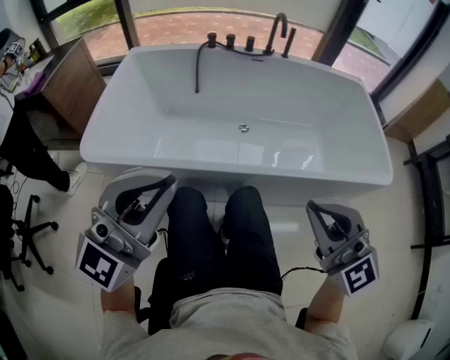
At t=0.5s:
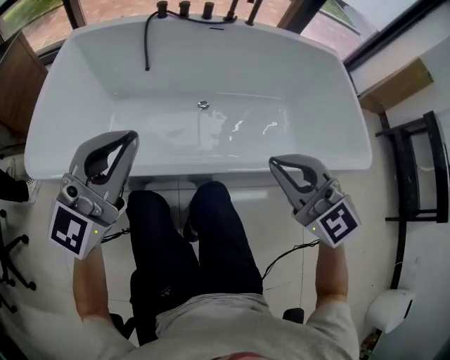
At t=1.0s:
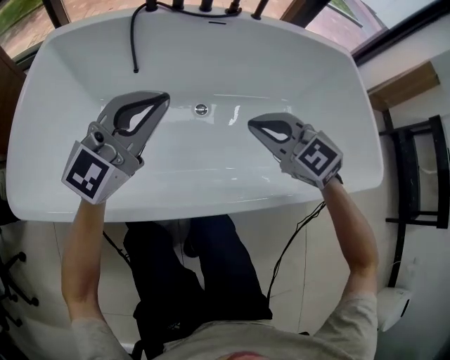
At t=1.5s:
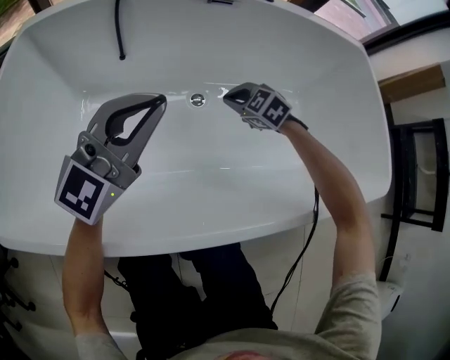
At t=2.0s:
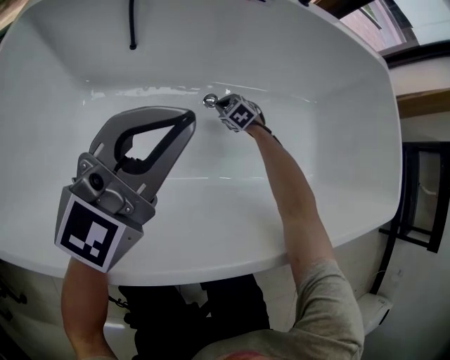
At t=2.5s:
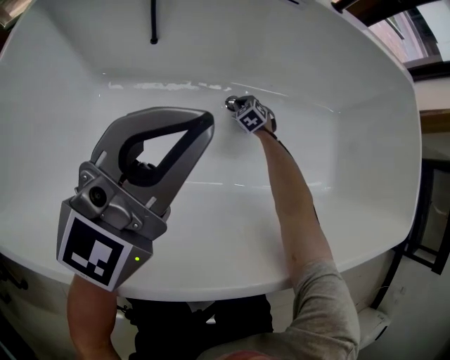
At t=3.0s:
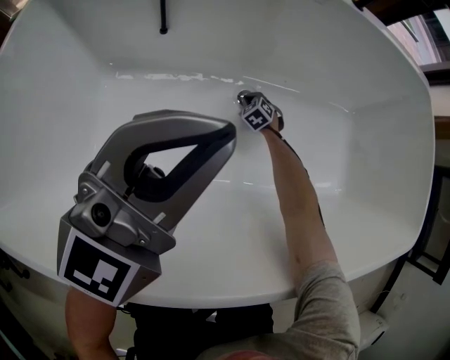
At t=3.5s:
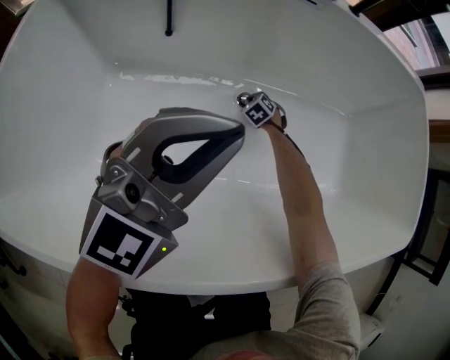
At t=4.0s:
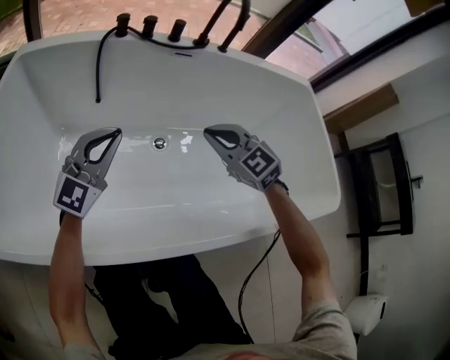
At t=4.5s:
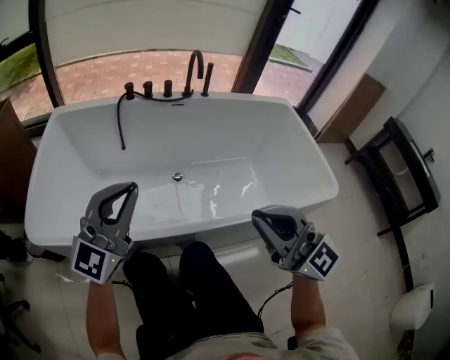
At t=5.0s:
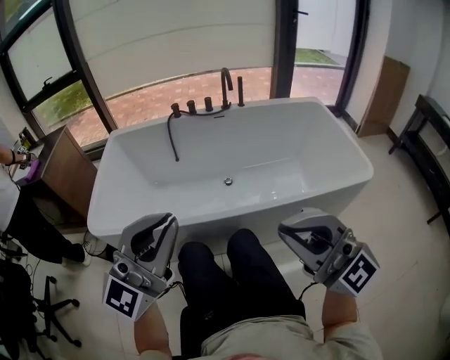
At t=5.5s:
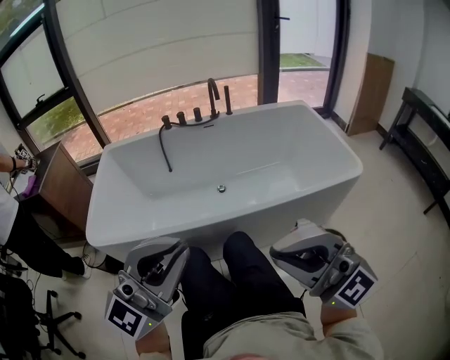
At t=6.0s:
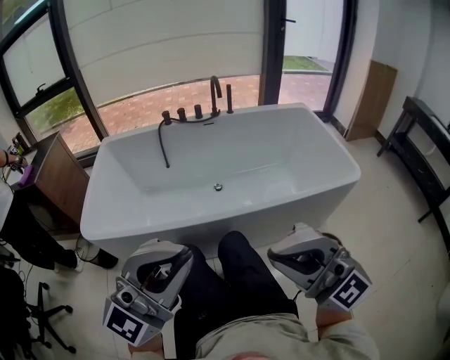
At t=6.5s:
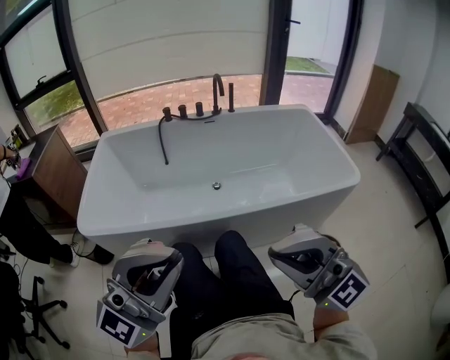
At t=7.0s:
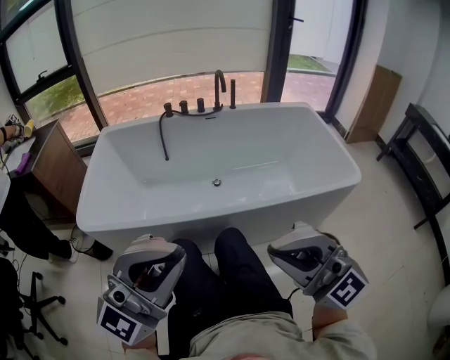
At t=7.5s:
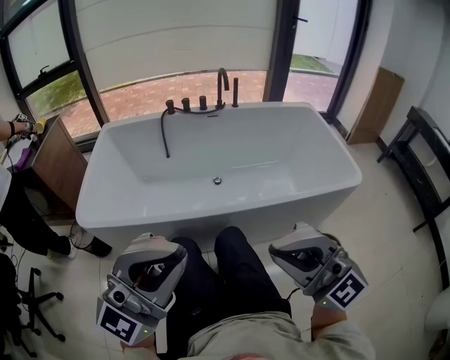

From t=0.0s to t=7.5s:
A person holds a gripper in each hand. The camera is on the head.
From t=0.0s to t=2.0s: The right gripper travels downward and forward by approximately 90 cm, and angles its fingers downward, by some 60 degrees. The left gripper heads forward and downward, covering about 50 cm.
From t=2.0s to t=4.0s: The right gripper is displaced upward by approximately 40 cm, and tips its fingers upward by approximately 40 degrees.
From t=4.0s to t=5.5s: Both grippers are carried backward, some 50 cm. The grippers both shift upward by about 30 cm. The right gripper angles its fingers upward, by roughly 40 degrees, while the left gripper rotates roughly 30 degrees.
From t=5.5s to t=7.5s: There are only small adjustments of the grippers.

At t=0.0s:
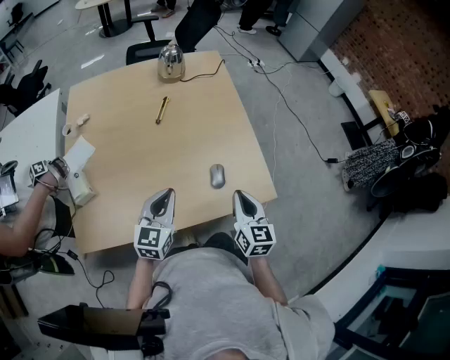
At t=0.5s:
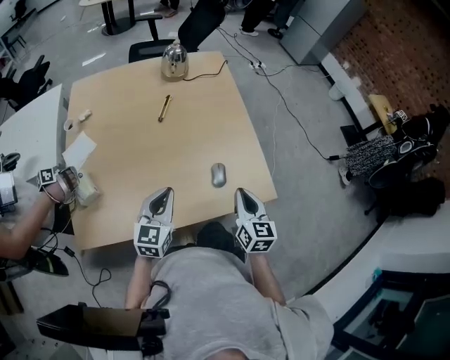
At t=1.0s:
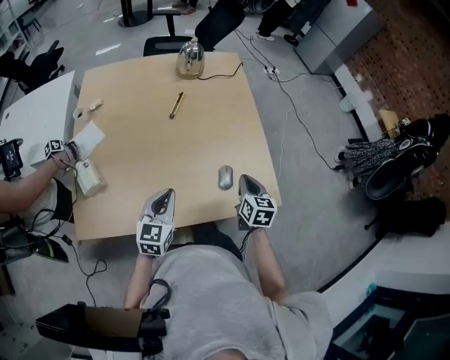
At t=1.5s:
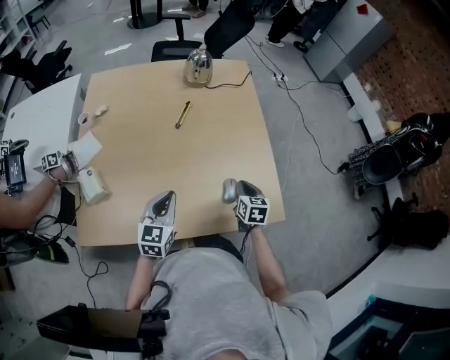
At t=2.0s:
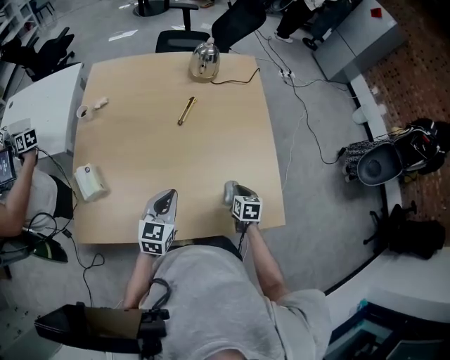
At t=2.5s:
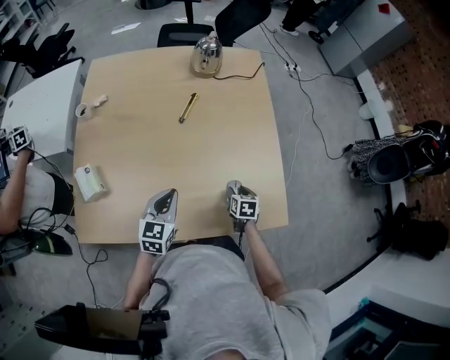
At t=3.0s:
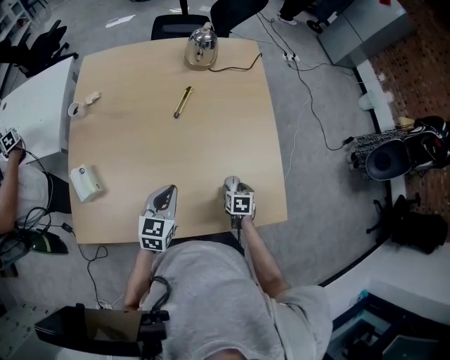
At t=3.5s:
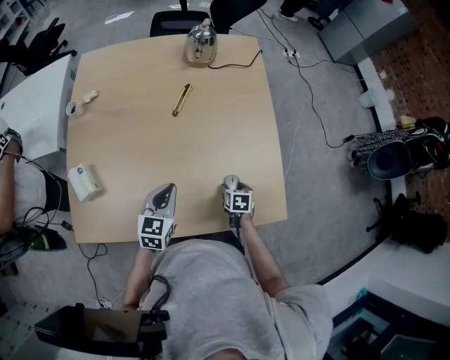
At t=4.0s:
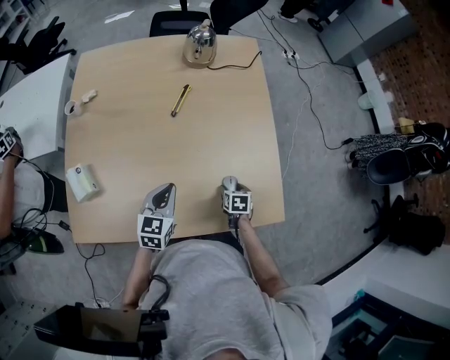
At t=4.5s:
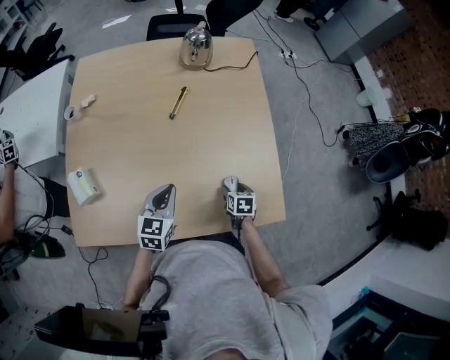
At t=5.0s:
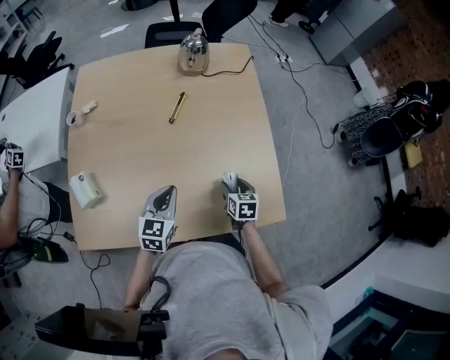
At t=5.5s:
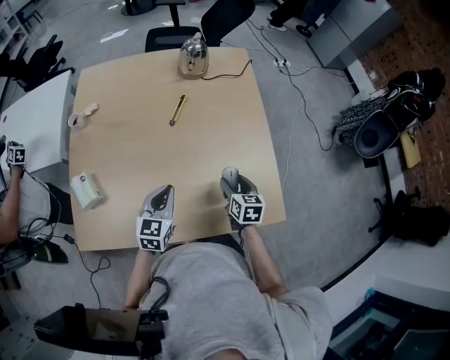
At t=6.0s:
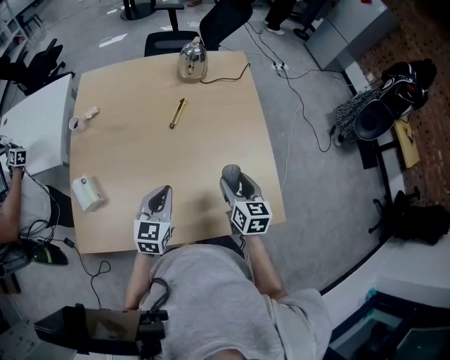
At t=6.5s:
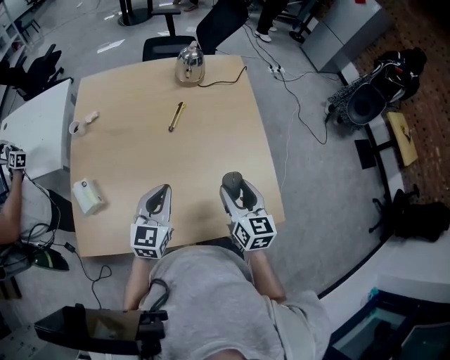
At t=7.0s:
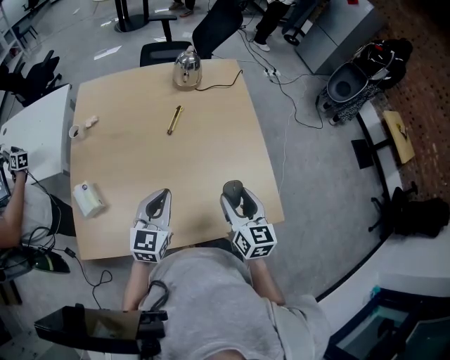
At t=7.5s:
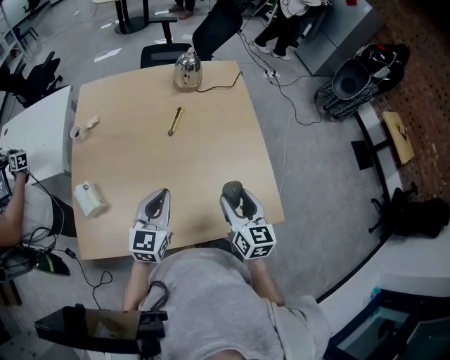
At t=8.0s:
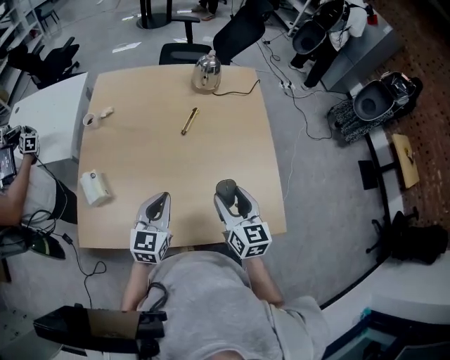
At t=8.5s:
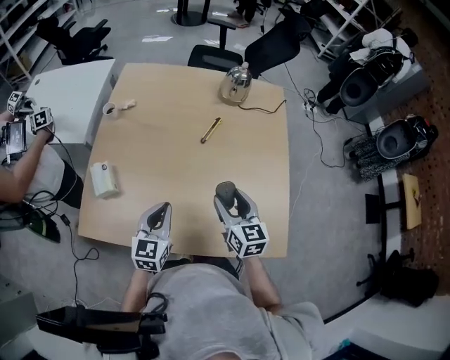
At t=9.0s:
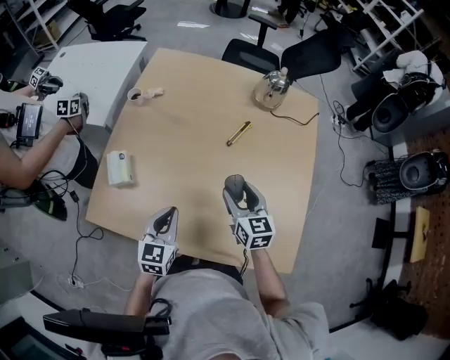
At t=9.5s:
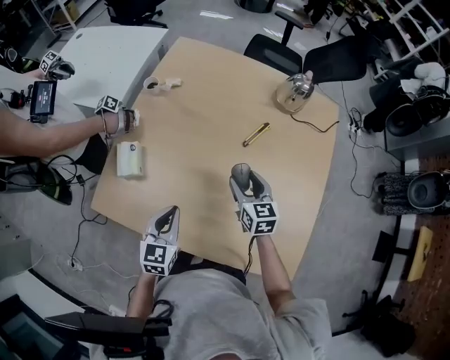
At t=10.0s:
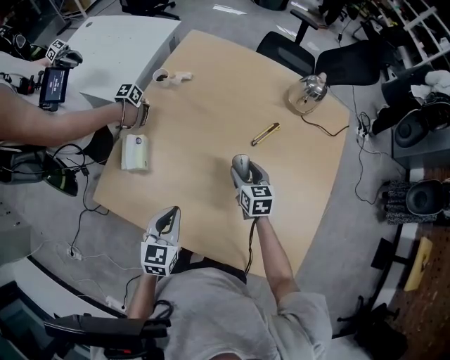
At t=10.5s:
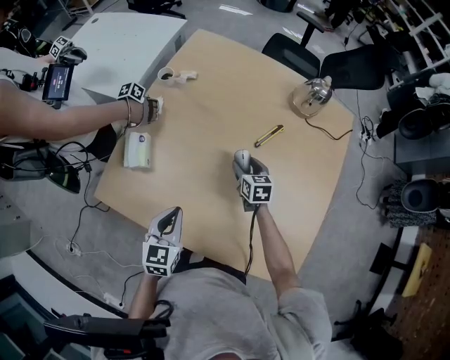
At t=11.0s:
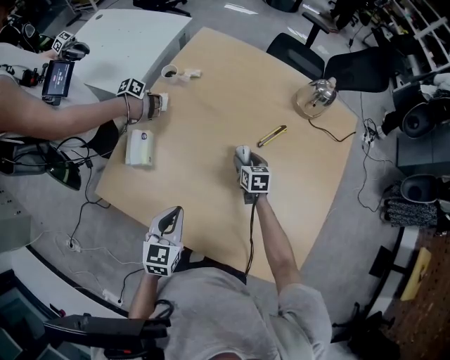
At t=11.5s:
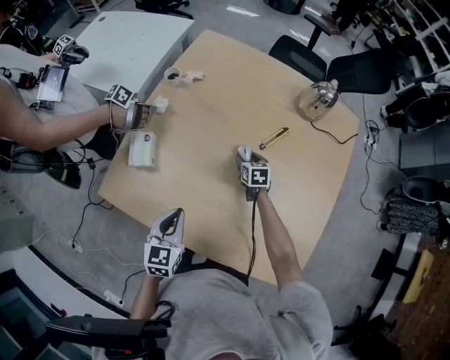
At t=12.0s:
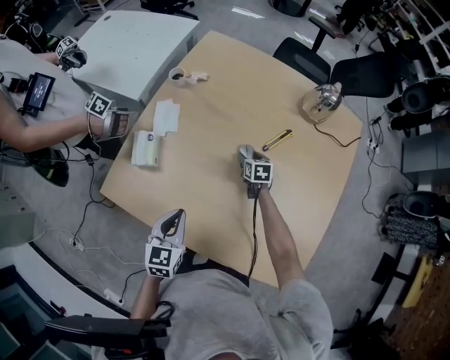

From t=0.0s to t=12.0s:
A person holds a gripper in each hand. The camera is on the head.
From t=0.0s to t=2.0s: The right gripper heads downward and forward, covering about 25 cm, and points its fingers roughly 30 degrees further downward, while the left gripper moves downward and forward, some 10 cm.
From t=2.0s to t=4.0s: The right gripper moves downward, approximately 5 cm, and opens.
From t=4.0s to t=6.0s: The left gripper is displaced upward by about 5 cm, while the right gripper is displaced upward by roughly 25 cm, and tips its fingers upward by about 40 degrees.
From t=6.0s to t=8.0s: The right gripper heads upward and to the left, covering approximately 10 cm. Meanwhile the left gripper changes place by roughly 5 cm.
From t=8.0s to t=10.0s: The right gripper ends up about 30 cm from where it was, and turns by roughly 30 degrees. The left gripper ends up about 15 cm from where it was, and swivels approximately 30 degrees.
From t=10.0s to t=12.0s: The right gripper moves downward and forward, about 15 cm.

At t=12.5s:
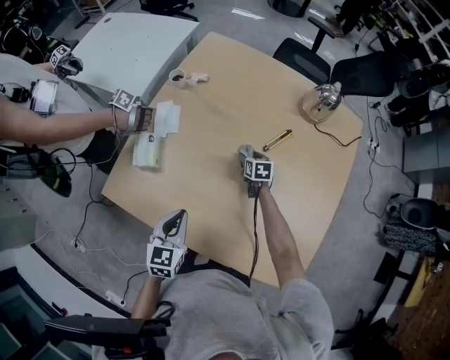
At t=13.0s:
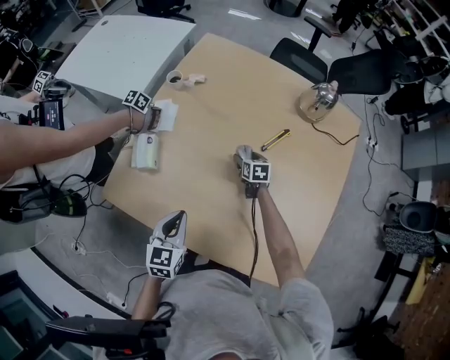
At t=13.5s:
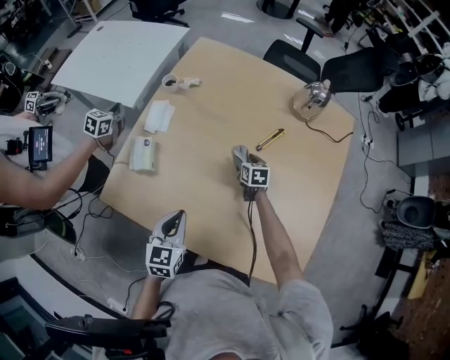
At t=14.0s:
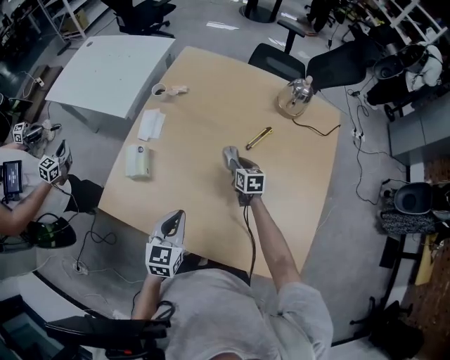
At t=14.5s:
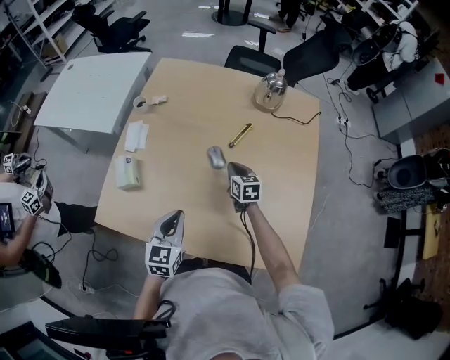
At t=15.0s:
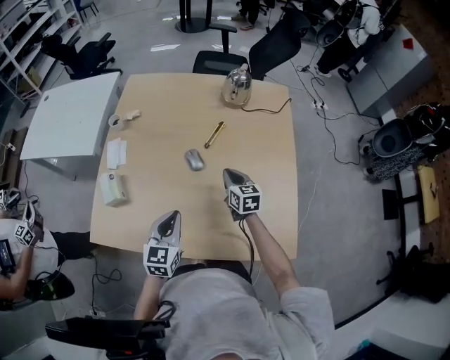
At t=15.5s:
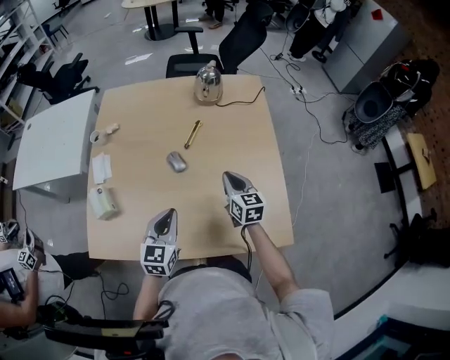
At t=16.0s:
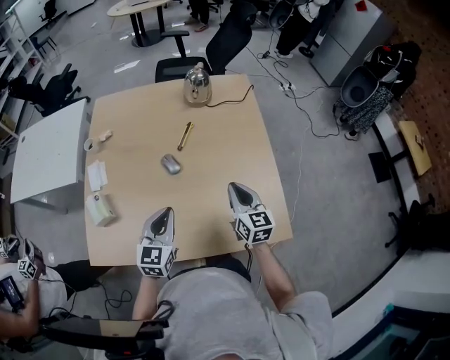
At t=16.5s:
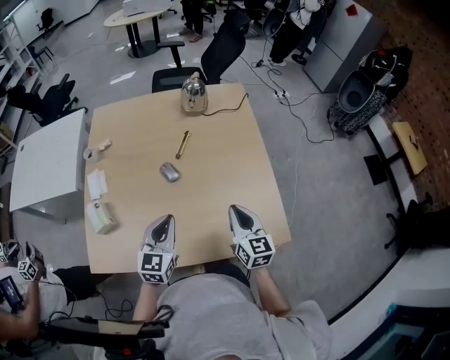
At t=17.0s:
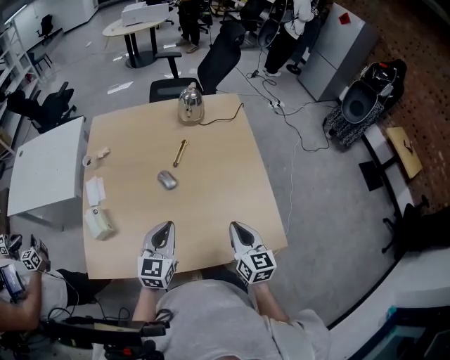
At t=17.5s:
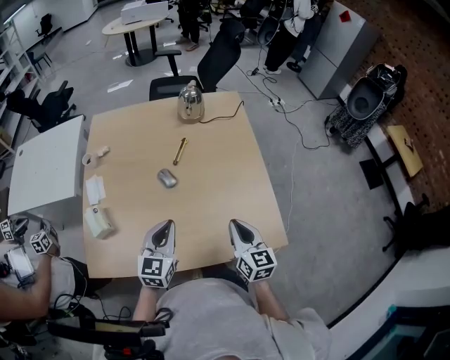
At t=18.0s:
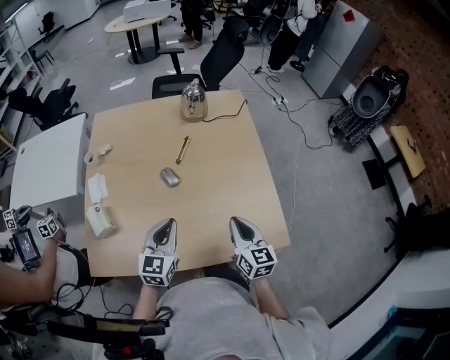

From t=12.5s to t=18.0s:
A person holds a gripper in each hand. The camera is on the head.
From t=12.5s to t=14.5s: The left gripper goes approximately 5 cm to the right. Meanwhile the right gripper travels upward and backward by about 15 cm, and closes its fingers.
From t=14.5s to t=16.0s: The right gripper is displaced backward, to the right and upward by approximately 25 cm, and swivels roughly 30 degrees. Meanwhile the left gripper shifts approximately 10 cm to the right.
From t=16.0s to t=18.0s: The right gripper is displaced backward by roughly 10 cm.

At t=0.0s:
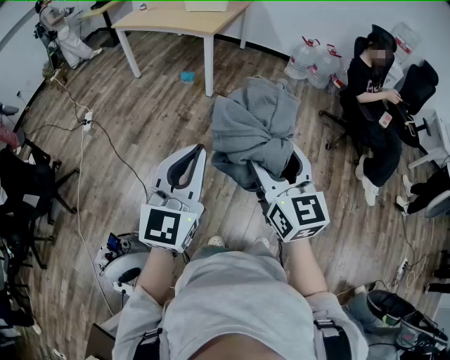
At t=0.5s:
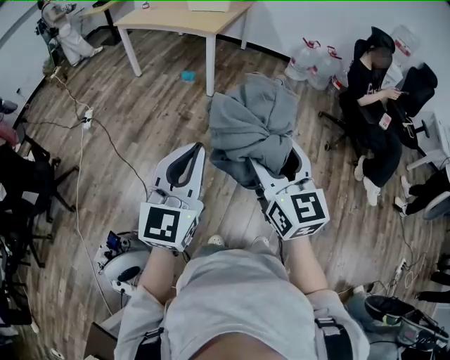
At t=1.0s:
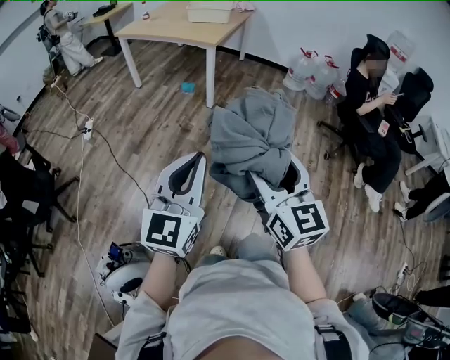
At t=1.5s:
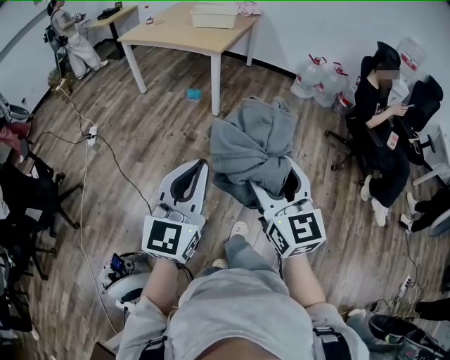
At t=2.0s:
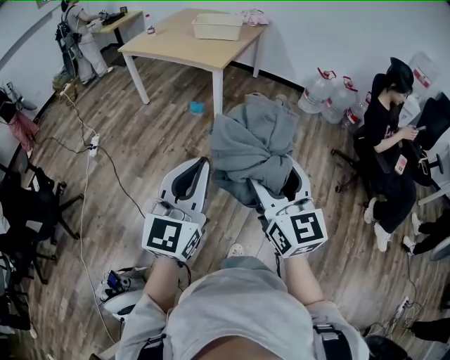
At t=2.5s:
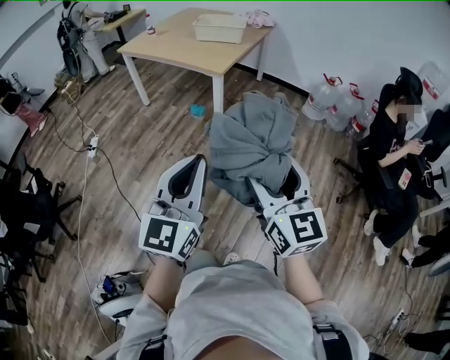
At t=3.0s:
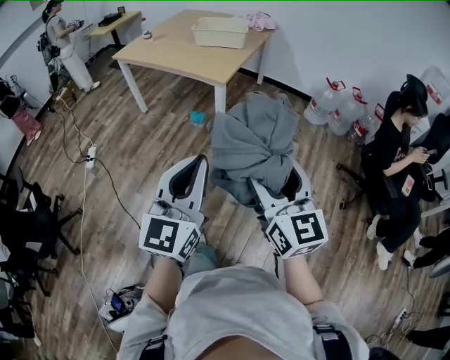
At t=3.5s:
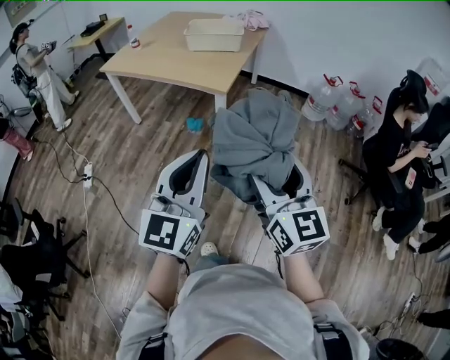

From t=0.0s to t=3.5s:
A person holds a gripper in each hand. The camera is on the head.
From t=0.0s to t=2.0s: The grippers both shift forward by some 20 cm.
From t=2.0s to t=3.5s: Both grippers travel together forward, approximately 25 cm.
